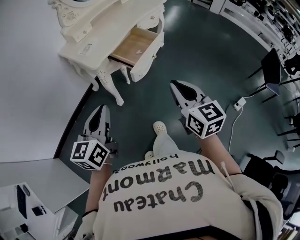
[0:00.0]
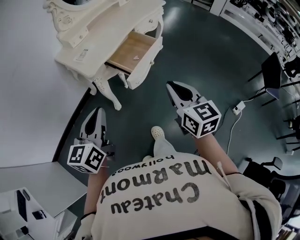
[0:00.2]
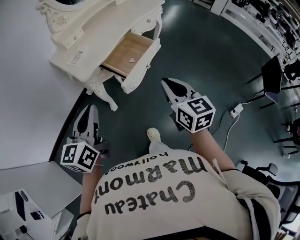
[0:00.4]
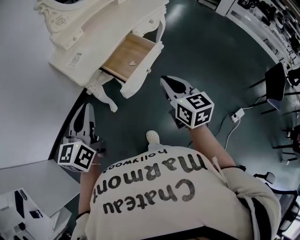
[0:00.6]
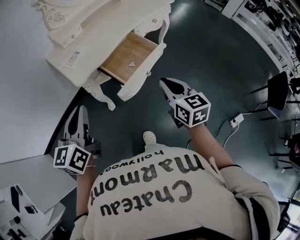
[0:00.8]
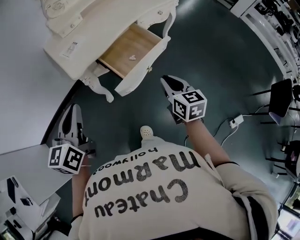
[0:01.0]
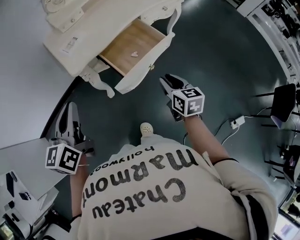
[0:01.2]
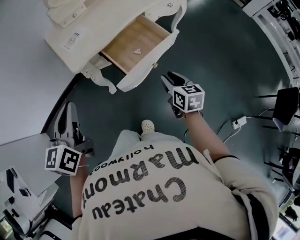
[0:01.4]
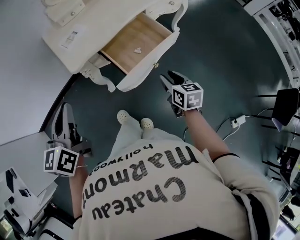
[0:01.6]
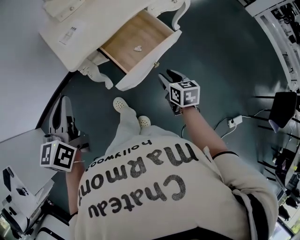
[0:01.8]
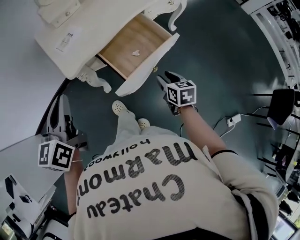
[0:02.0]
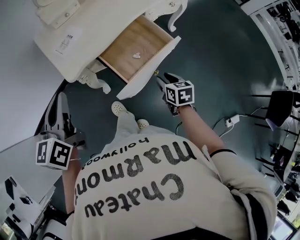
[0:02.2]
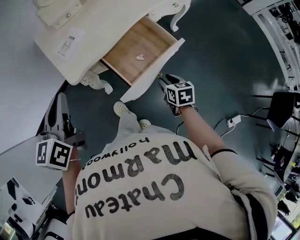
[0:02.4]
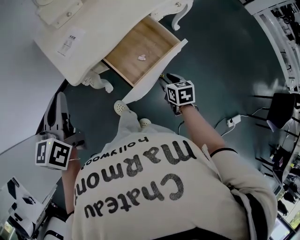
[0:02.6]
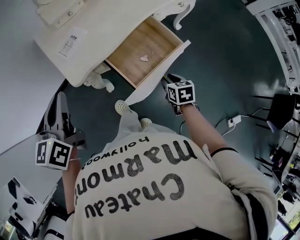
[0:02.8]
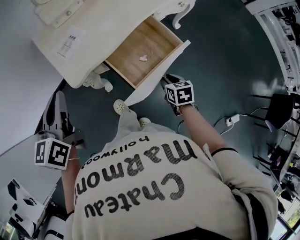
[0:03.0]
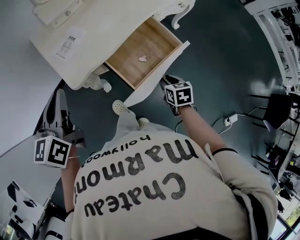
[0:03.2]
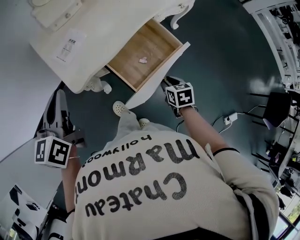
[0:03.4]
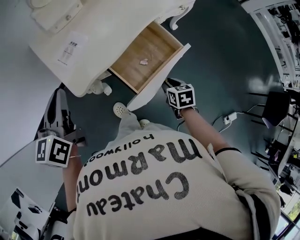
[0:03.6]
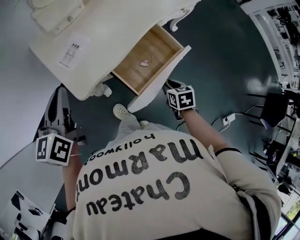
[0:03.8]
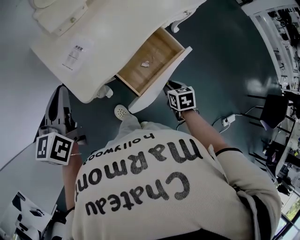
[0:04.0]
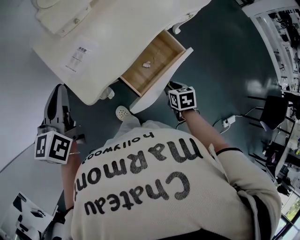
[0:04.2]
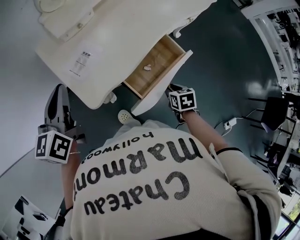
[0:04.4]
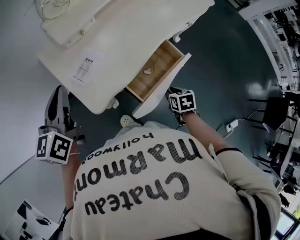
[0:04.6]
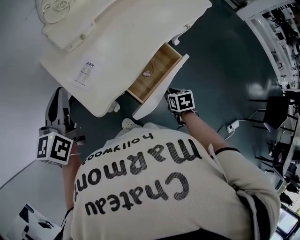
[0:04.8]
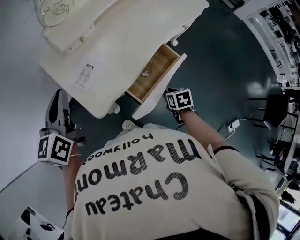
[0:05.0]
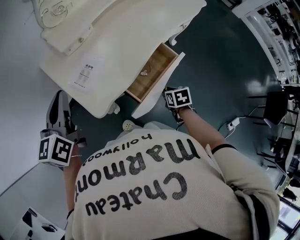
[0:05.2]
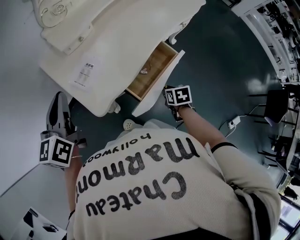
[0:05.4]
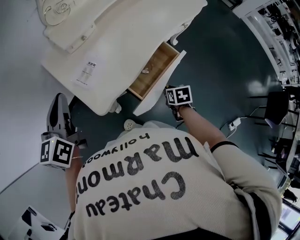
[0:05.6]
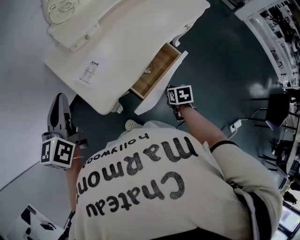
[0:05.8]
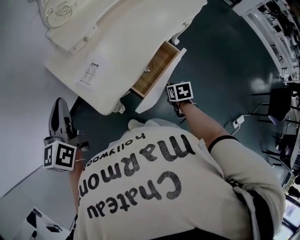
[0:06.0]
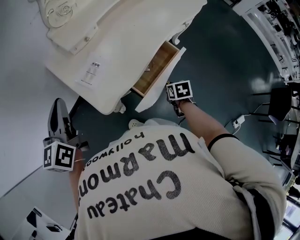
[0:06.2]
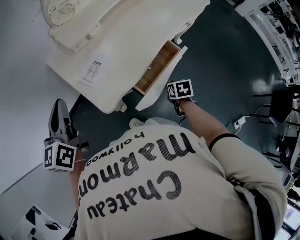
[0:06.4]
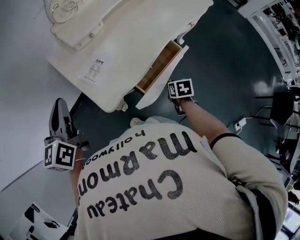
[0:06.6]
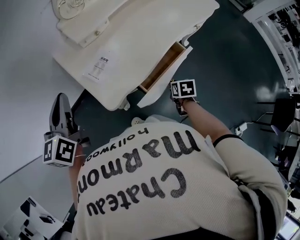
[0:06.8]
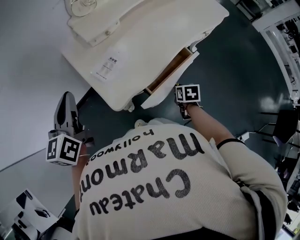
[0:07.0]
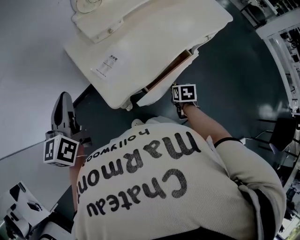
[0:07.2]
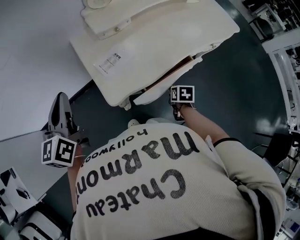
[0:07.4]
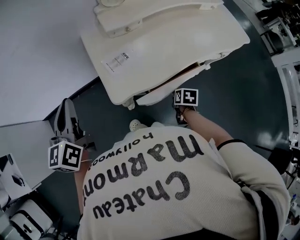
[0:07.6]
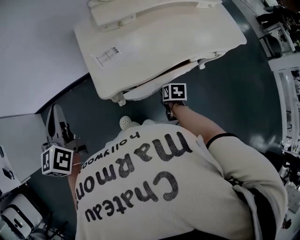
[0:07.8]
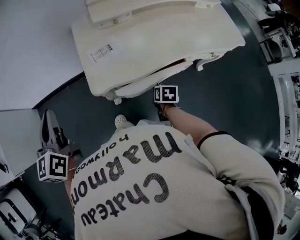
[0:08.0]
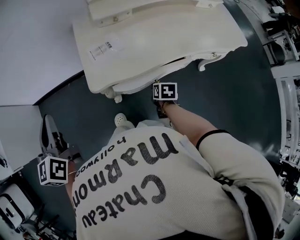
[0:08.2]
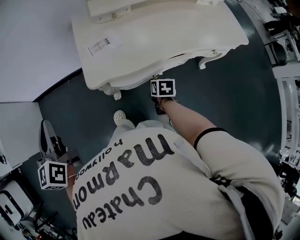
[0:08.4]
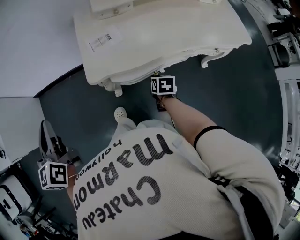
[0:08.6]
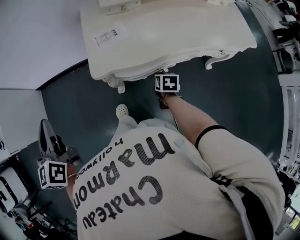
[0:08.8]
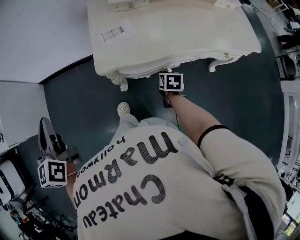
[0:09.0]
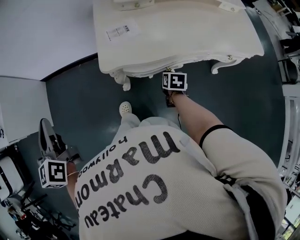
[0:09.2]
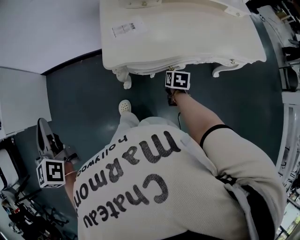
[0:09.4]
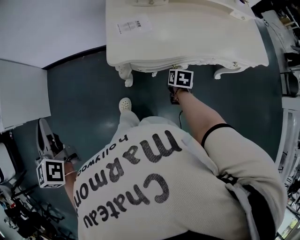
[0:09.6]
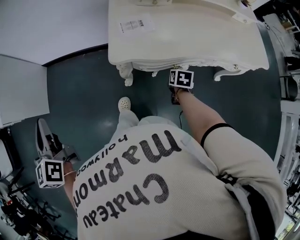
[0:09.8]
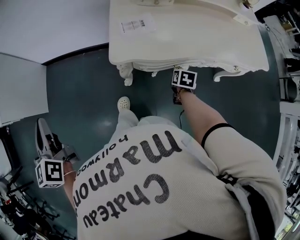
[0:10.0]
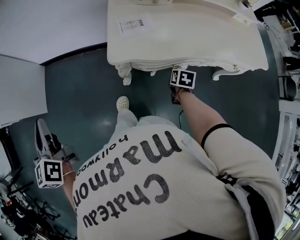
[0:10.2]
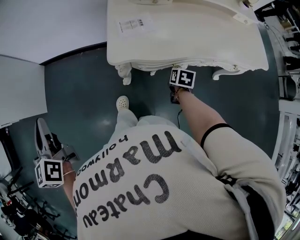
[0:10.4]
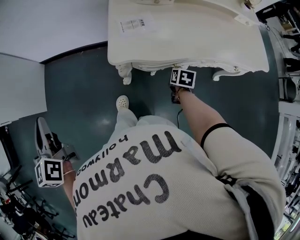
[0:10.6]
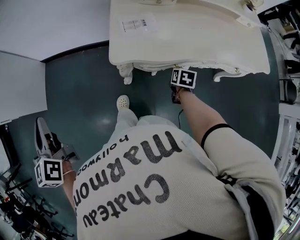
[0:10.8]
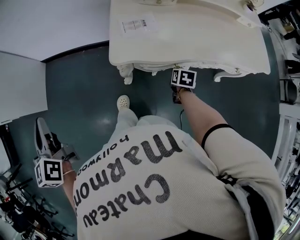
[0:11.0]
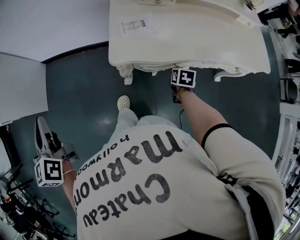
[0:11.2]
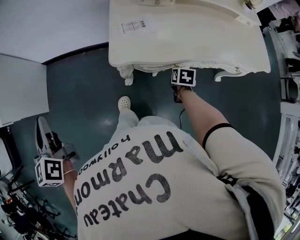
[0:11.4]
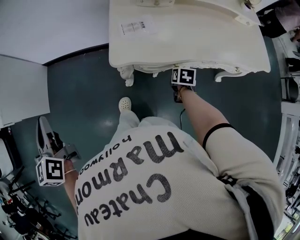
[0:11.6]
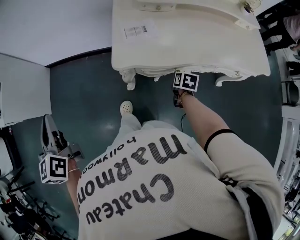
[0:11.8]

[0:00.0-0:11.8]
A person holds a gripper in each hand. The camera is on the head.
0:00.0 to 0:01.4: The right gripper travels forward and downward by some 35 cm, swivels about 30 degrees, and opens; the left gripper heads forward, covering some 15 cm, and changes its angle by approximately 20 degrees.
0:01.4 to 0:03.0: The left gripper is displaced forward by some 15 cm. The right gripper is displaced downward and forward by approximately 15 cm, and changes its angle by about 20 degrees.
0:03.0 to 0:04.4: The right gripper ends up some 5 cm from where it was. The left gripper is displaced forward and to the left by approximately 15 cm.
0:04.4 to 0:06.0: The left gripper shifts by about 5 cm.
0:06.0 to 0:07.4: The right gripper shifts by about 5 cm. Meanwhile the left gripper changes place by about 5 cm.
0:07.4 to 0:08.8: The right gripper swivels some 20 degrees. The left gripper shifts by about 20 cm, and rotates some 30 degrees.
0:08.8 to 0:10.4: The left gripper travels to the left by about 10 cm.
0:10.4 to 0:11.8: The grippers stay close to where they were, moving slightly.

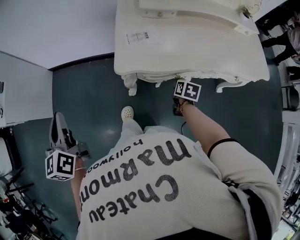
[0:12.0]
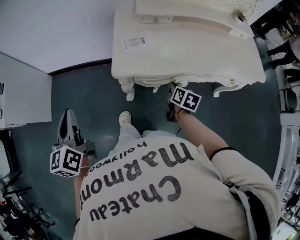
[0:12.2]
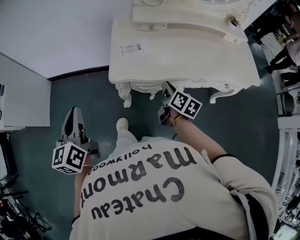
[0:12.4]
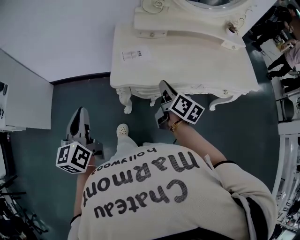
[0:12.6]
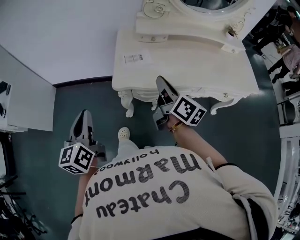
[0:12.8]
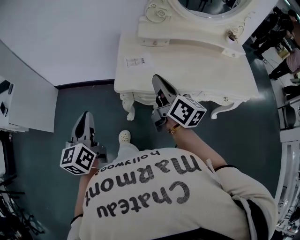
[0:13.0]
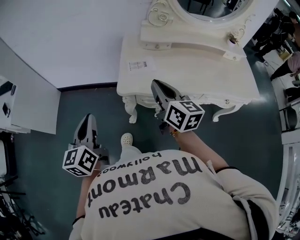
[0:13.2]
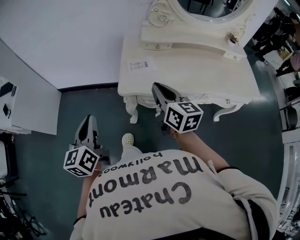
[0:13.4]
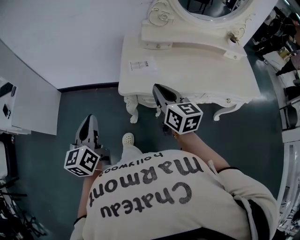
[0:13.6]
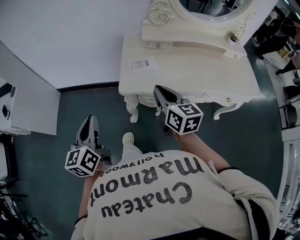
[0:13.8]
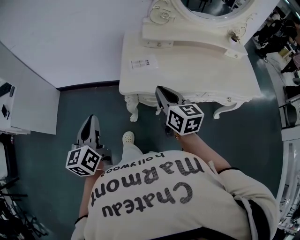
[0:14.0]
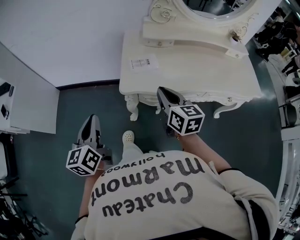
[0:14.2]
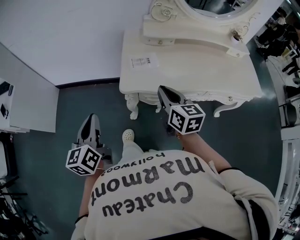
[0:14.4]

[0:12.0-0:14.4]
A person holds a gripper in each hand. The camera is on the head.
0:12.0 to 0:13.2: The right gripper goes some 30 cm upward, and tilts its fingers roughly 50 degrees upward. Meanwhile the left gripper shifts some 10 cm to the right.
0:13.2 to 0:14.4: The right gripper moves downward, roughly 5 cm.

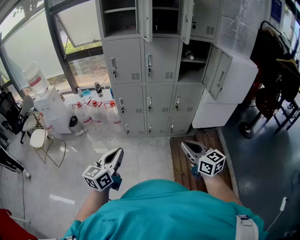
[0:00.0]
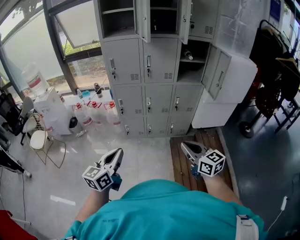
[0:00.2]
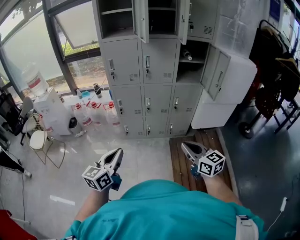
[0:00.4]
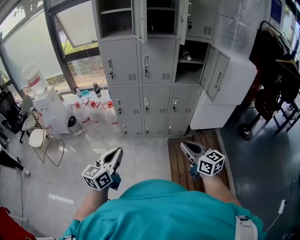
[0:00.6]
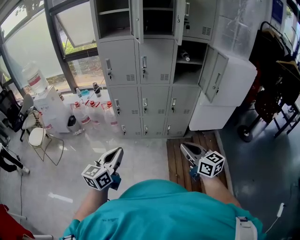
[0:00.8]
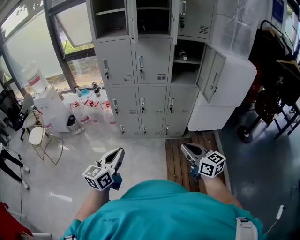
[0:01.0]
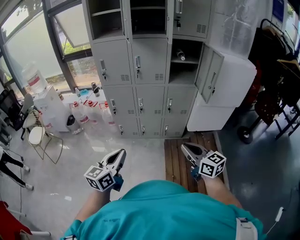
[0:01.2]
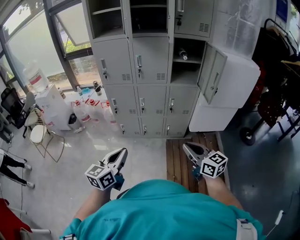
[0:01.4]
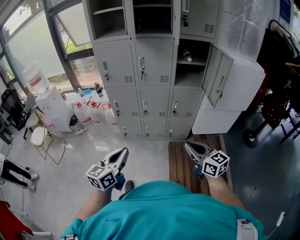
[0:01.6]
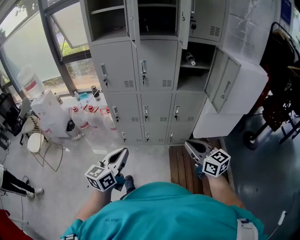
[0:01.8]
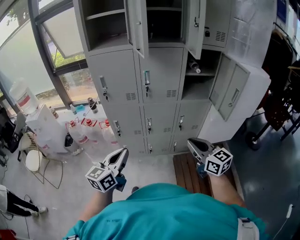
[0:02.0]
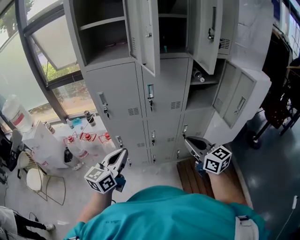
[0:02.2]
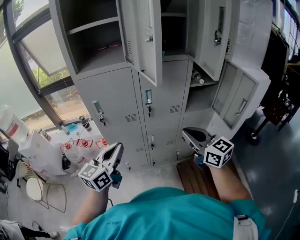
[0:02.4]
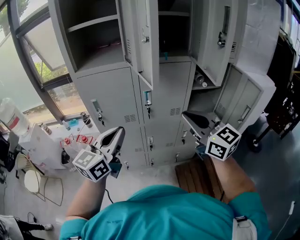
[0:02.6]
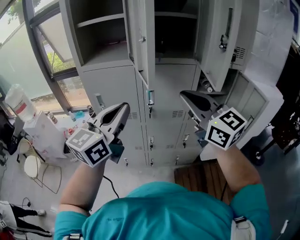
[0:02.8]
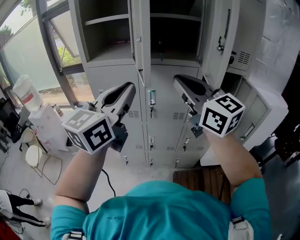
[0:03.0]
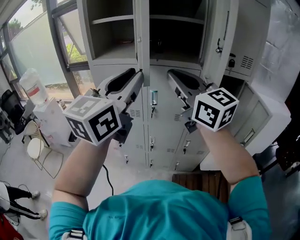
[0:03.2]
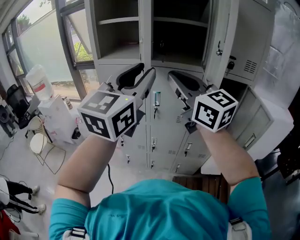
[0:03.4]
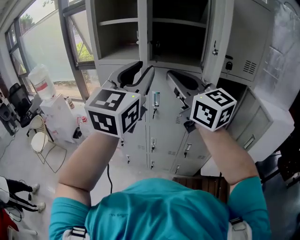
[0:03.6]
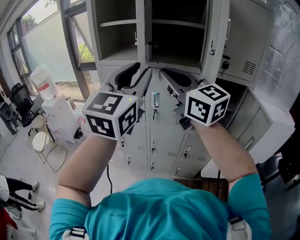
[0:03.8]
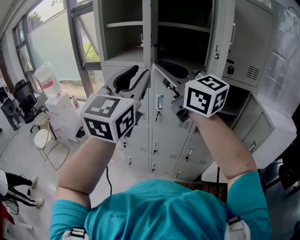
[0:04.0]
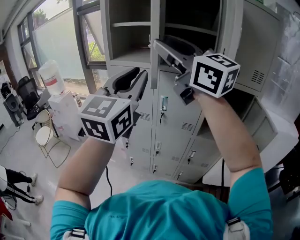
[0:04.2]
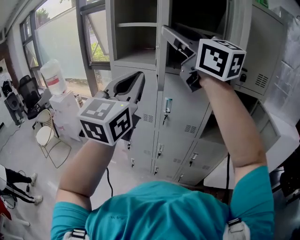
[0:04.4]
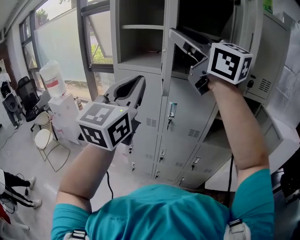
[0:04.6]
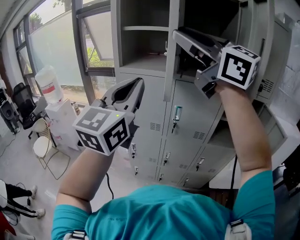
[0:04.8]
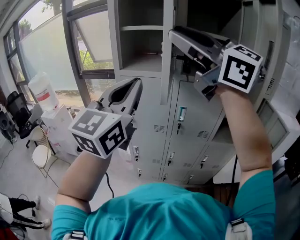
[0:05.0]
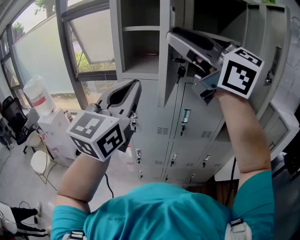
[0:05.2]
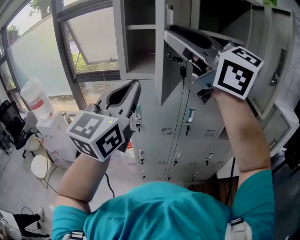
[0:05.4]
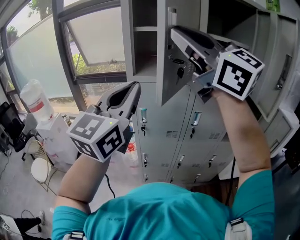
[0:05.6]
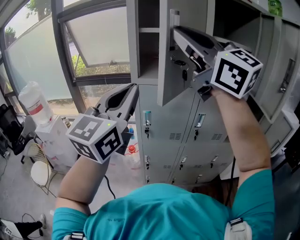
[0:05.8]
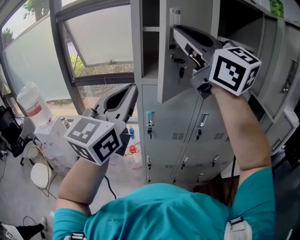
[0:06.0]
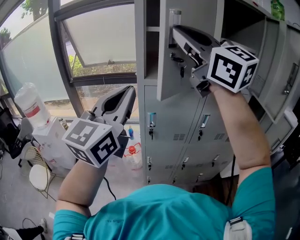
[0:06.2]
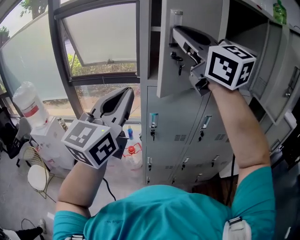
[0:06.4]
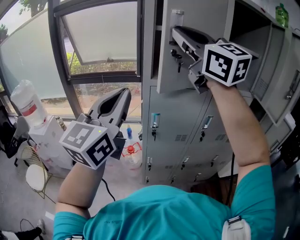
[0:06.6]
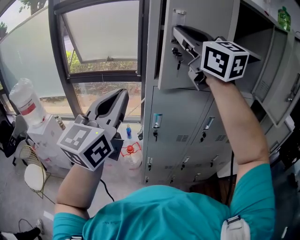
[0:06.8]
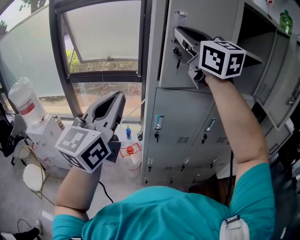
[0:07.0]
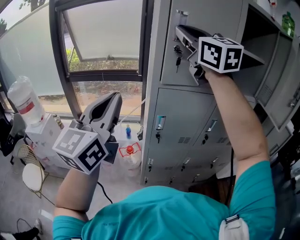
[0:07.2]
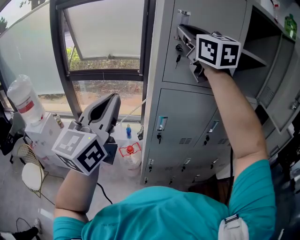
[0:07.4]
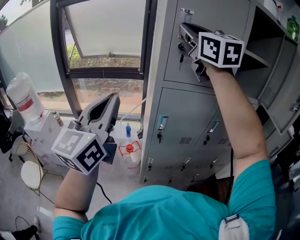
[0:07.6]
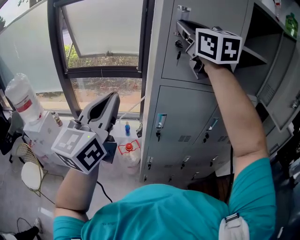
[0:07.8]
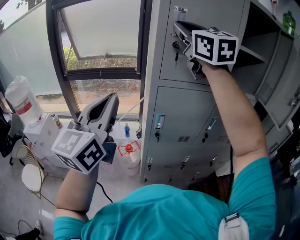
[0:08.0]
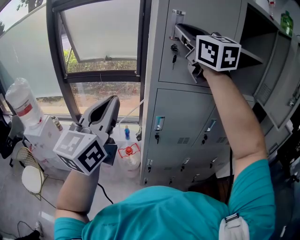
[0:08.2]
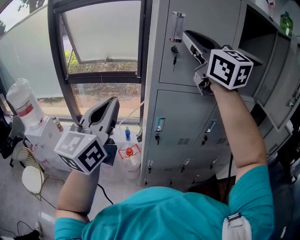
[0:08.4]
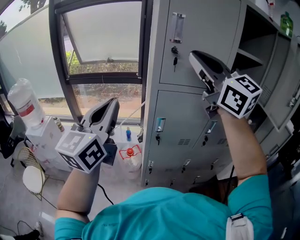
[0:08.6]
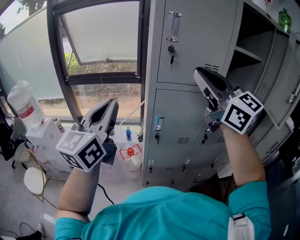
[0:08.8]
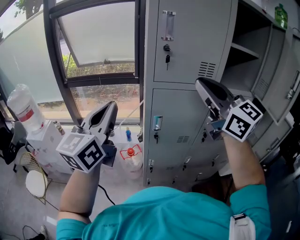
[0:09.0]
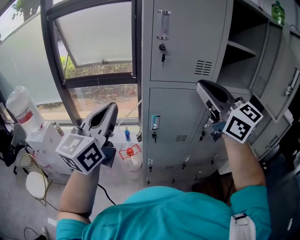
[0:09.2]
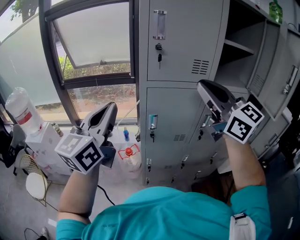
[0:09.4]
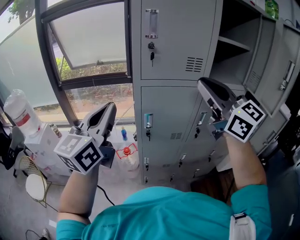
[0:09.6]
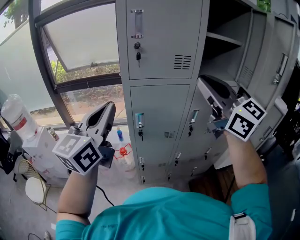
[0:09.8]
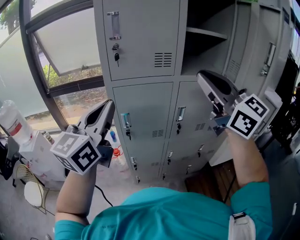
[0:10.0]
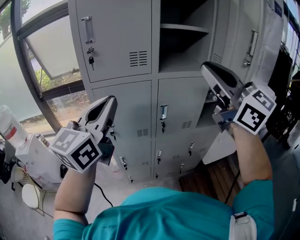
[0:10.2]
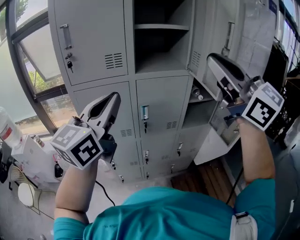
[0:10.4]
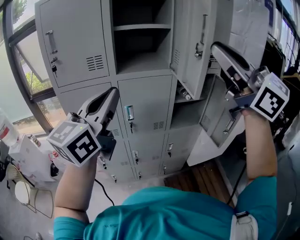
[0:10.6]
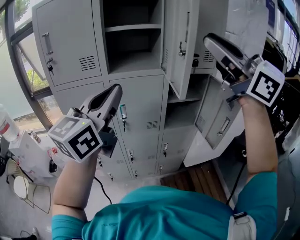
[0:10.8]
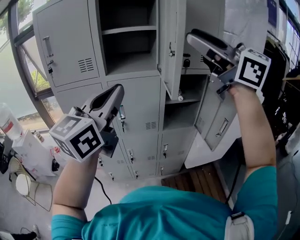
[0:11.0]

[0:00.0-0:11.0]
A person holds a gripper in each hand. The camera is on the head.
0:00.0 to 0:01.6: The two grippers go approximately 15 cm to the right and forward.
0:01.6 to 0:03.2: The grippers both shift forward and upward by approximately 50 cm. The right gripper changes its angle by some 30 degrees, while the left gripper rotates roughly 30 degrees.
0:03.2 to 0:04.8: The left gripper shifts about 10 cm to the left; the right gripper heads upward and to the left, covering about 20 cm, swivels roughly 20 degrees, and opens its fingers.
0:04.8 to 0:06.2: The two grippers go about 25 cm to the left and forward. The right gripper turns by about 20 degrees.
0:06.2 to 0:07.8: The left gripper heads to the left and forward, covering some 15 cm; the right gripper goes approximately 15 cm forward.
0:07.8 to 0:09.4: The right gripper shifts roughly 25 cm backward, downward and to the right.
0:09.4 to 0:11.0: The two grippers travel together, to the right, about 50 cm. The right gripper opens.
